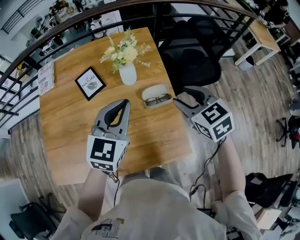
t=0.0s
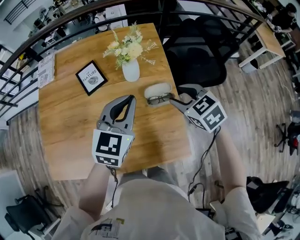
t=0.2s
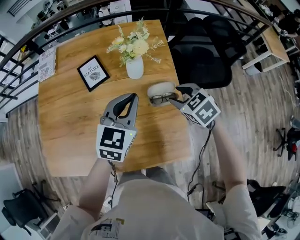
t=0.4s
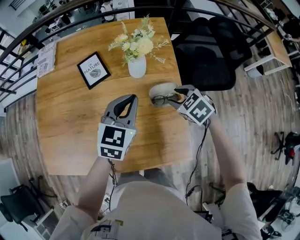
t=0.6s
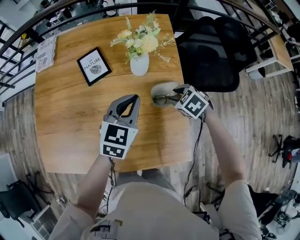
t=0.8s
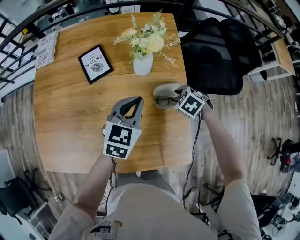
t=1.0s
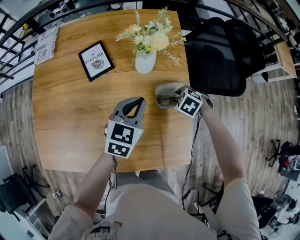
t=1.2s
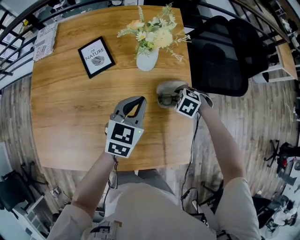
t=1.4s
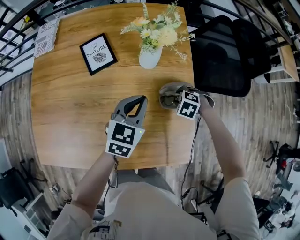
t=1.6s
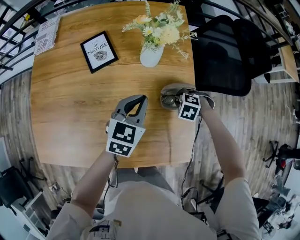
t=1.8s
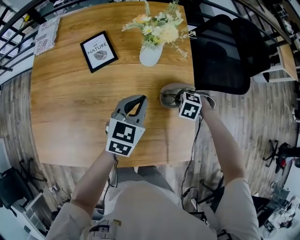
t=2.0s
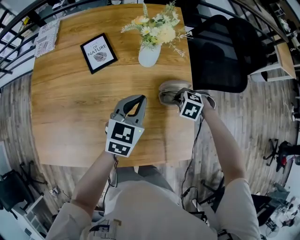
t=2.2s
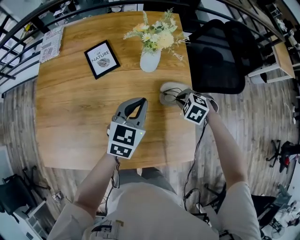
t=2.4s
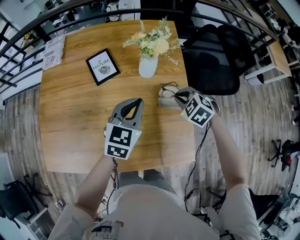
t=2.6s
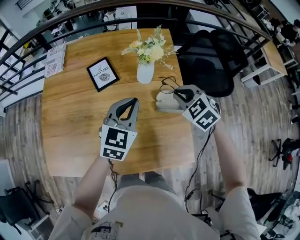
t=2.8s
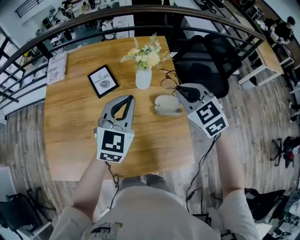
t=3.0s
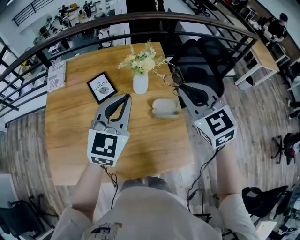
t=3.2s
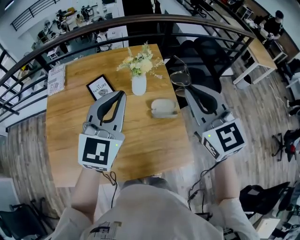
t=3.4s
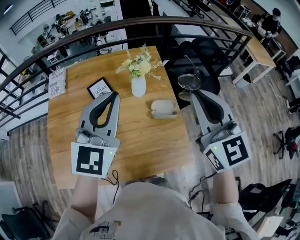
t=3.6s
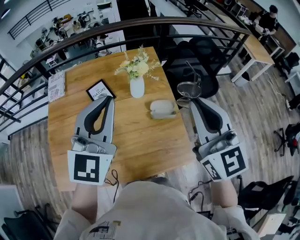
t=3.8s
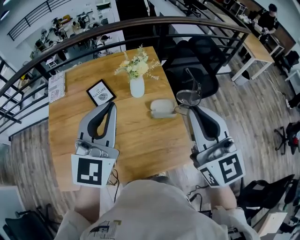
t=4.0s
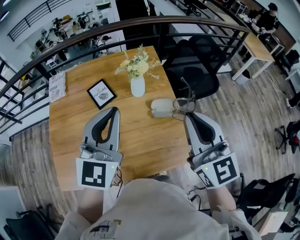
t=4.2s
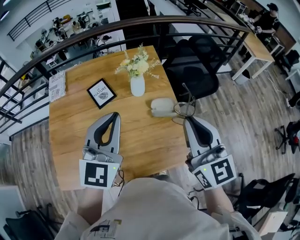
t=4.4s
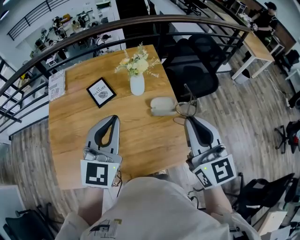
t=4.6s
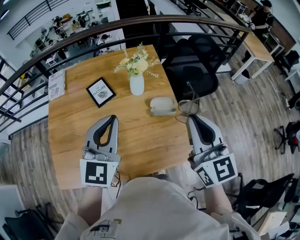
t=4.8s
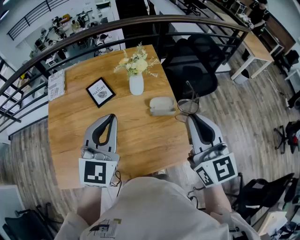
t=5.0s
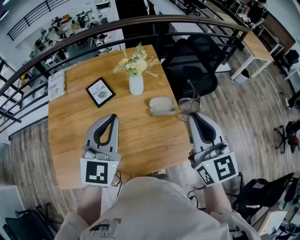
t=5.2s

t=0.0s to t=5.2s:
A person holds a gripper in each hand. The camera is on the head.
t=0.0s to t=1.8s: The right gripper is displaced downward by some 35 cm, tilts its fingers some 40 degrees downward, and closes. Meanwhile the left gripper goes approximately 20 cm downward.
t=1.8s to t=3.4s: The right gripper is displaced upward by roughly 50 cm, and tips its fingers upward by roughly 70 degrees. The left gripper travels upward by approximately 30 cm, and swivels about 30 degrees.
t=3.4s to t=5.2s: The grippers both shift backward by some 10 cm. The right gripper swivels some 20 degrees.

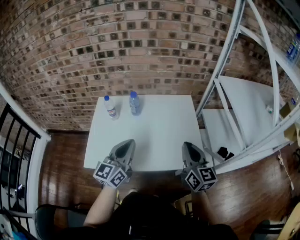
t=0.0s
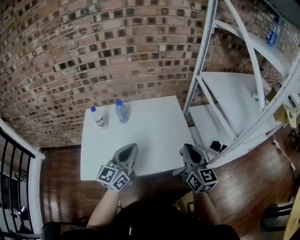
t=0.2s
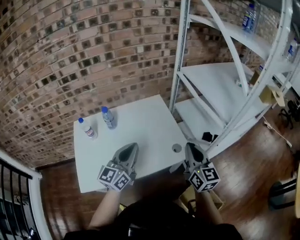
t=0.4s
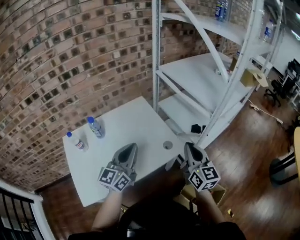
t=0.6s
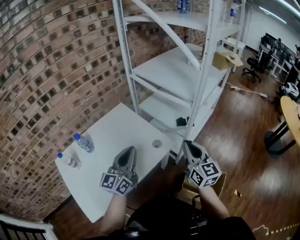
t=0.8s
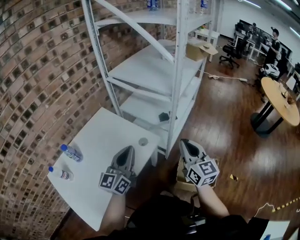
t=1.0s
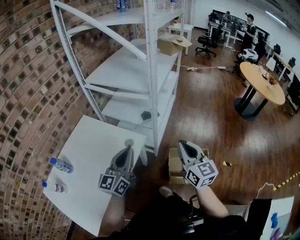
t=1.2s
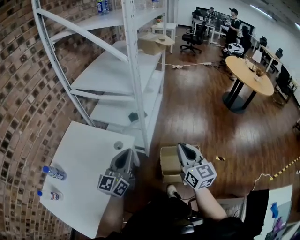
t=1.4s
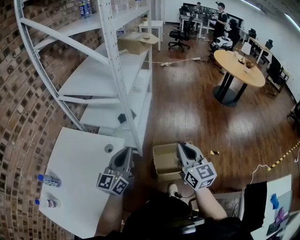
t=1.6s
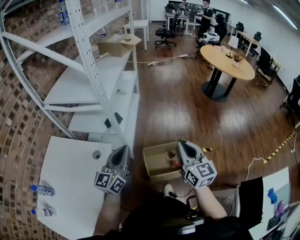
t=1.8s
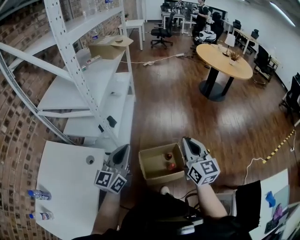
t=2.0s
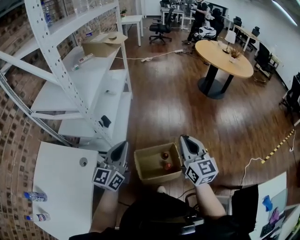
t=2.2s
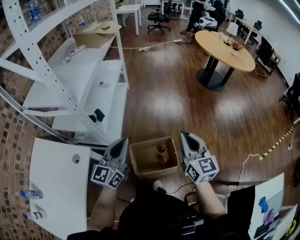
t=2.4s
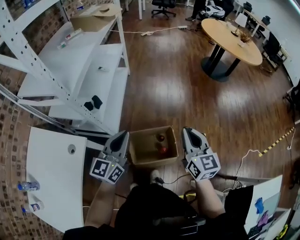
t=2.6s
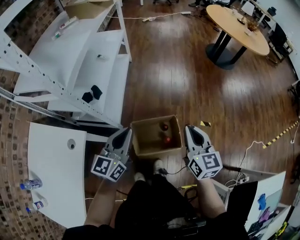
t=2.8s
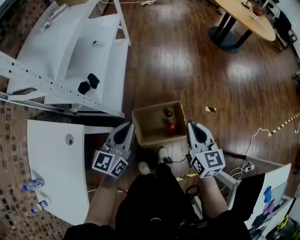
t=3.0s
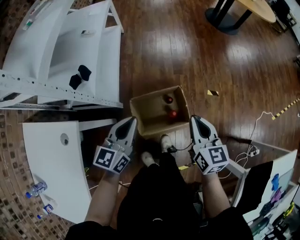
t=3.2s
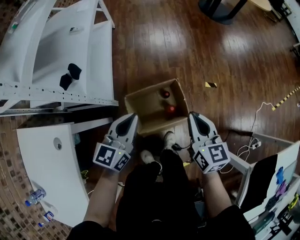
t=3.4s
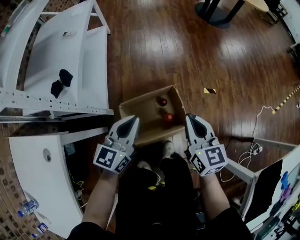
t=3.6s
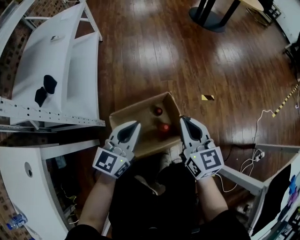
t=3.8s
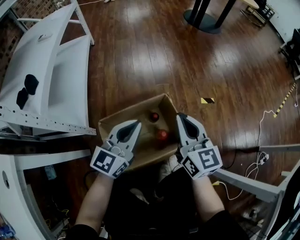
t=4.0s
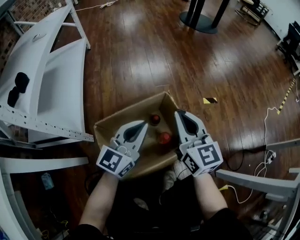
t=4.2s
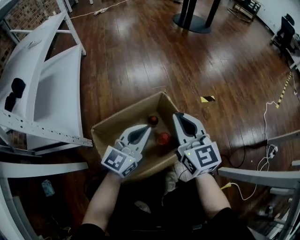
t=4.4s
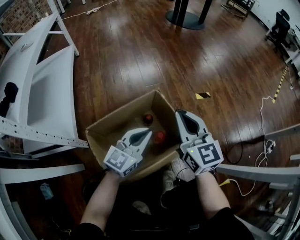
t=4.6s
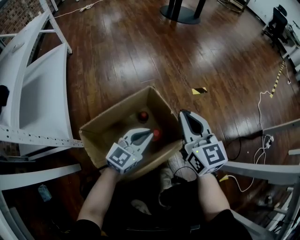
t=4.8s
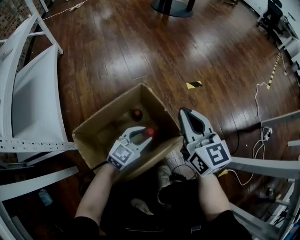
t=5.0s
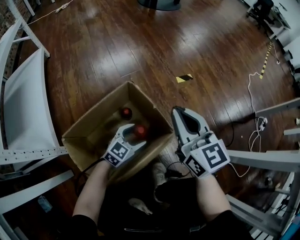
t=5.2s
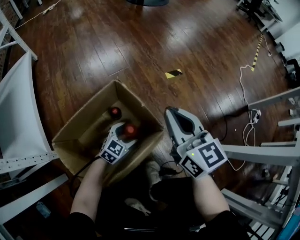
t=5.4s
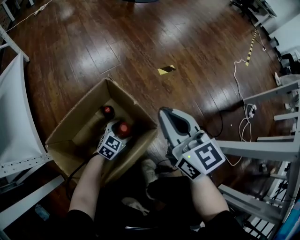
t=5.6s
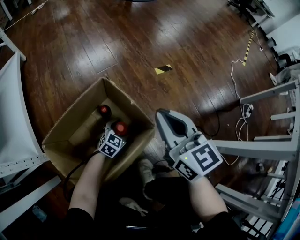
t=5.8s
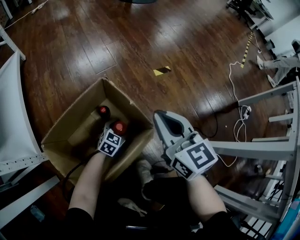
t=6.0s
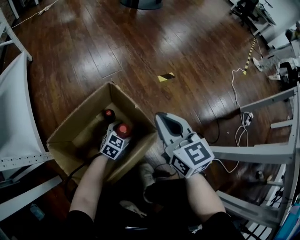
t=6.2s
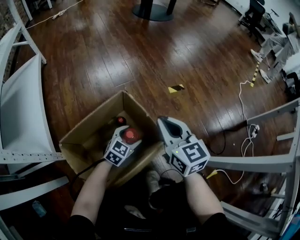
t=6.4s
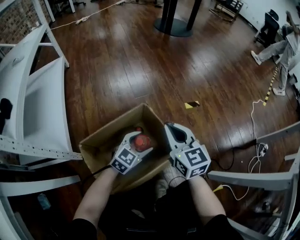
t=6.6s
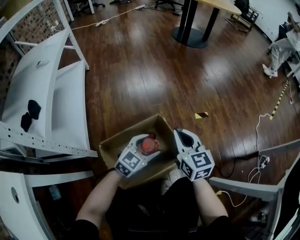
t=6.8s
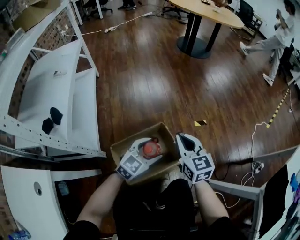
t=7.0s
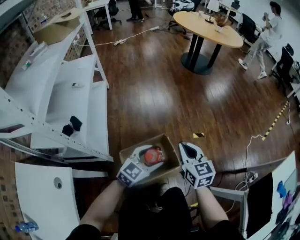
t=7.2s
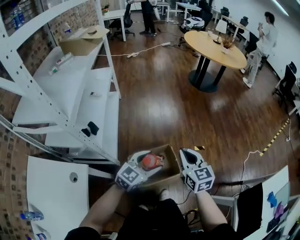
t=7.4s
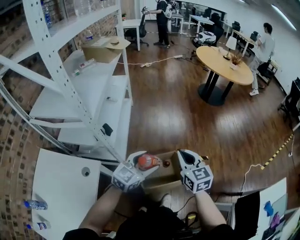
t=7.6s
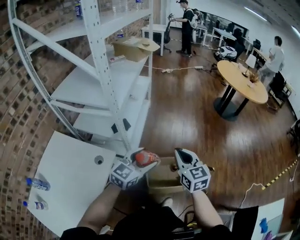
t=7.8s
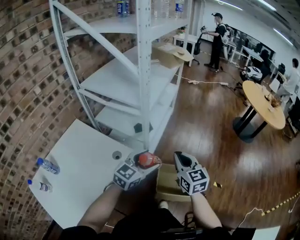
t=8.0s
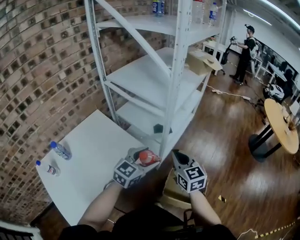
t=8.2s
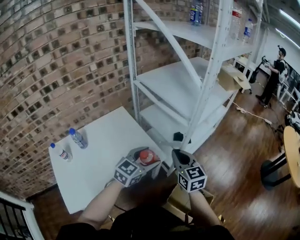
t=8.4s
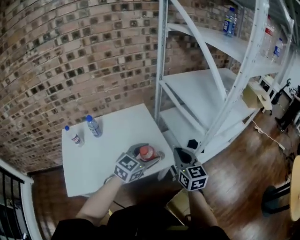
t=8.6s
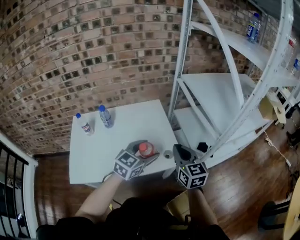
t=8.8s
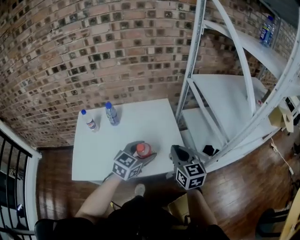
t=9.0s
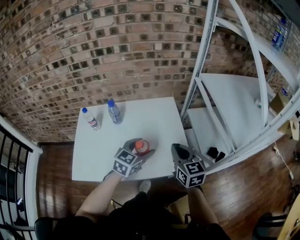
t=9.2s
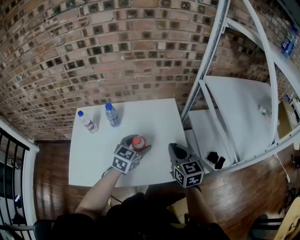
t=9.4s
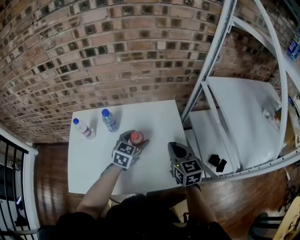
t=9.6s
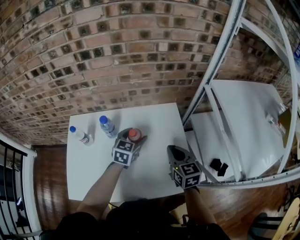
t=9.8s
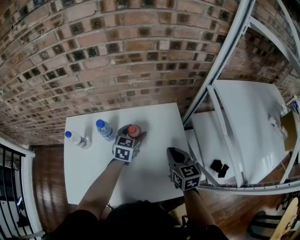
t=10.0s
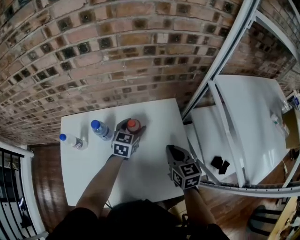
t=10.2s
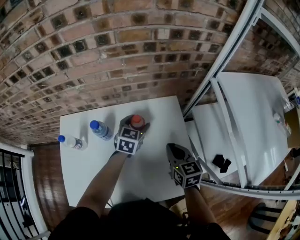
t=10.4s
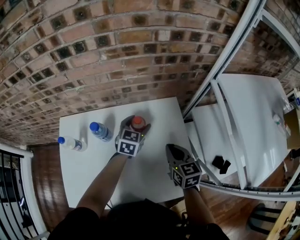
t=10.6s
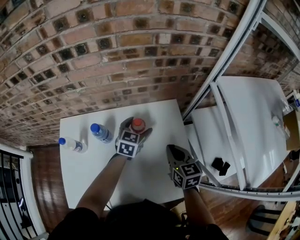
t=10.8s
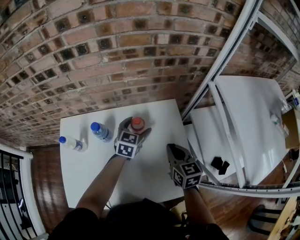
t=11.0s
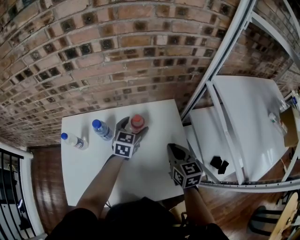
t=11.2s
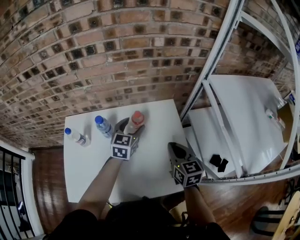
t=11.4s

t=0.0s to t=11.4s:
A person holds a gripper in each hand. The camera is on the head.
t=0.0s to t=1.4s: The left gripper shifts by roughly 30 cm, and swivels roughly 60 degrees; the right gripper ends up approximately 35 cm from where it was, and changes its angle by about 60 degrees.
t=1.4s to t=2.8s: The grippers both shift to the right, forward and downward by approximately 35 cm. The left gripper swivels approximately 20 degrees.
t=2.8s to t=4.2s: Both grippers move downward, some 50 cm. The left gripper turns by about 30 degrees.
t=4.2s to t=5.6s: The left gripper heads downward and to the right, covering about 35 cm, angles its fingers downward, by some 30 degrees, and opens its fingers. The right gripper heads to the right, covering some 15 cm.
t=5.6s to t=7.2s: The right gripper moves upward, some 30 cm. The left gripper heads upward, covering some 60 cm, and turns by roughly 20 degrees.
t=7.2s to t=8.6s: The two grippers travel together, some 50 cm. The right gripper swivels about 70 degrees. Meanwhile the left gripper turns by approximately 80 degrees.
t=8.6s to t=10.0s: The right gripper moves approximately 30 cm, and changes its angle by some 20 degrees. Meanwhile the left gripper shifts by about 40 cm, and changes its angle by about 40 degrees.
t=10.0s to t=11.4s: The grippers move only a little.

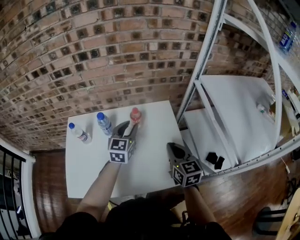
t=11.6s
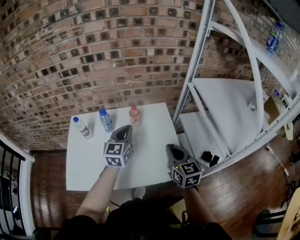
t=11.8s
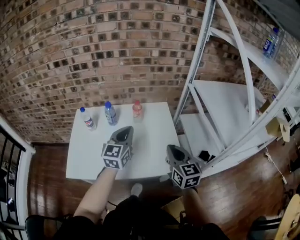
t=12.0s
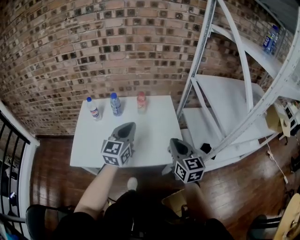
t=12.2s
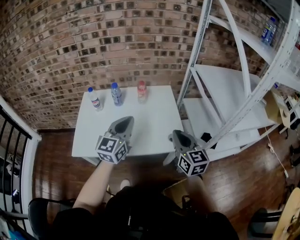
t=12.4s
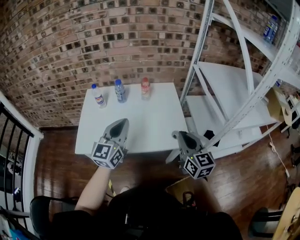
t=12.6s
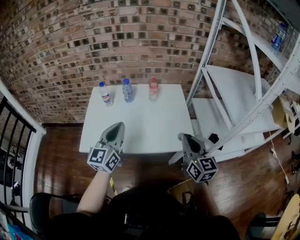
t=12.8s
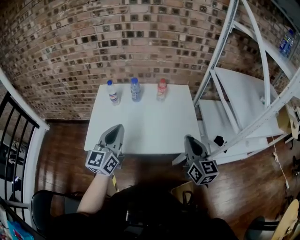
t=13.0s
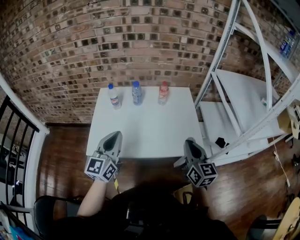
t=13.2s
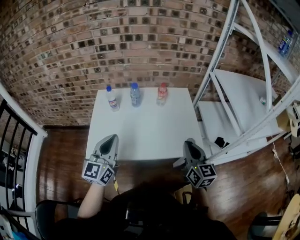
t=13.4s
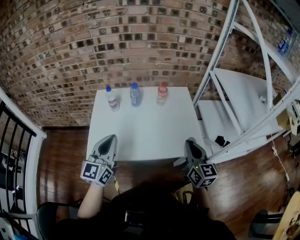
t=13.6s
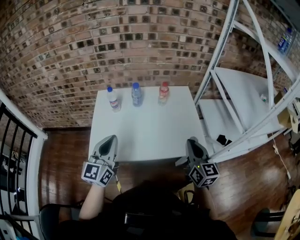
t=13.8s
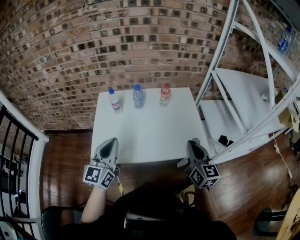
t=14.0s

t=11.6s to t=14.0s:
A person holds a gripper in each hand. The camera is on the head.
t=11.6s to t=12.8s: The two grippers go approximately 25 cm backward. The left gripper rotates about 20 degrees, and closes its fingers.
t=12.8s to t=14.0s: The right gripper goes about 5 cm to the left. Meanwhile the left gripper travels to the left by roughly 10 cm.

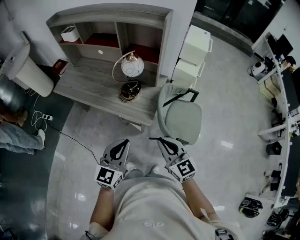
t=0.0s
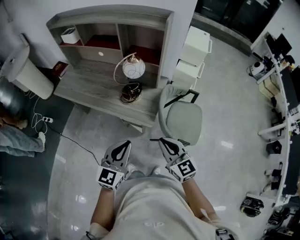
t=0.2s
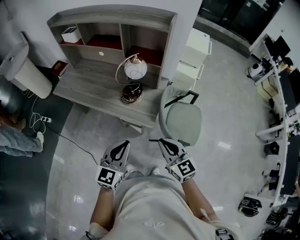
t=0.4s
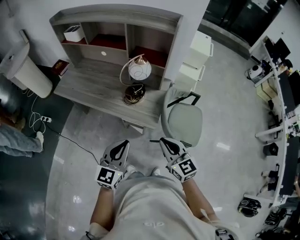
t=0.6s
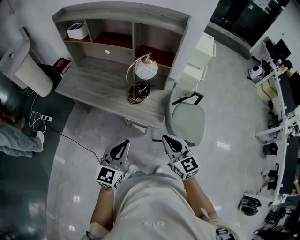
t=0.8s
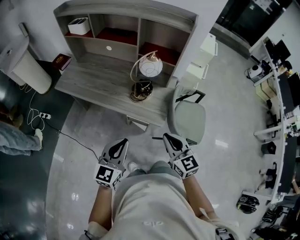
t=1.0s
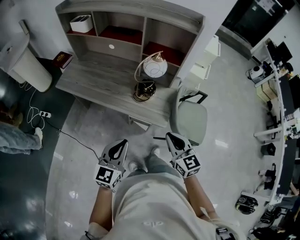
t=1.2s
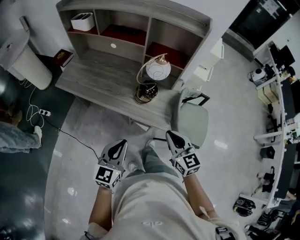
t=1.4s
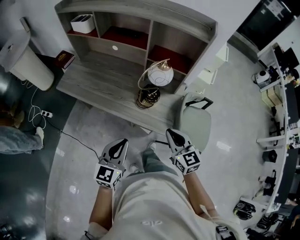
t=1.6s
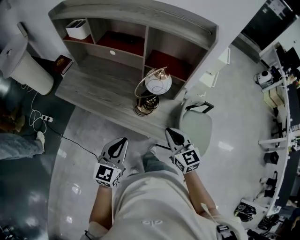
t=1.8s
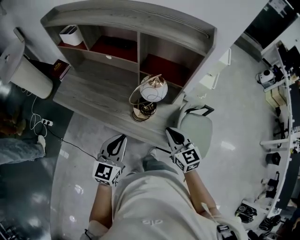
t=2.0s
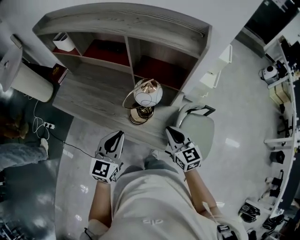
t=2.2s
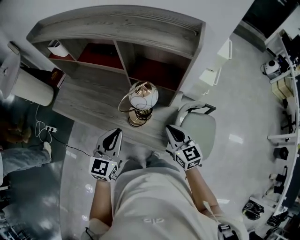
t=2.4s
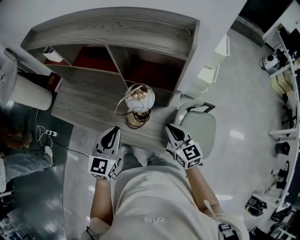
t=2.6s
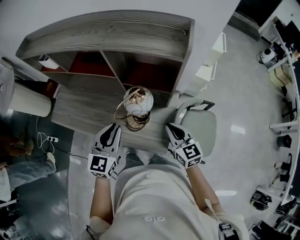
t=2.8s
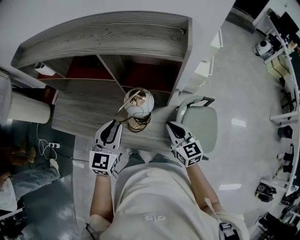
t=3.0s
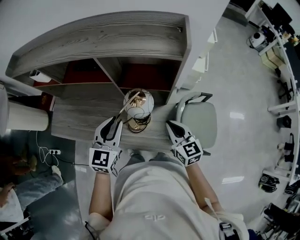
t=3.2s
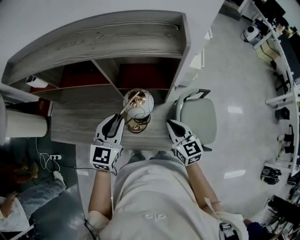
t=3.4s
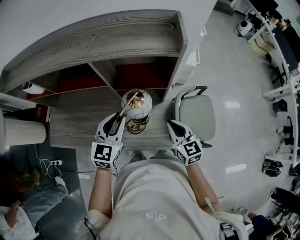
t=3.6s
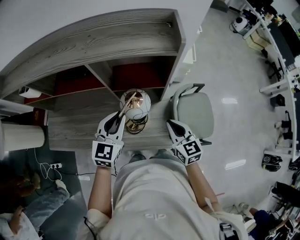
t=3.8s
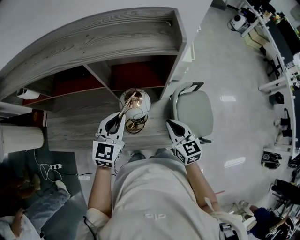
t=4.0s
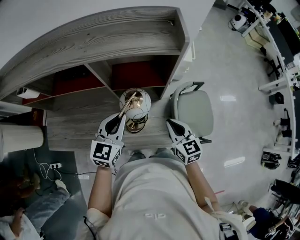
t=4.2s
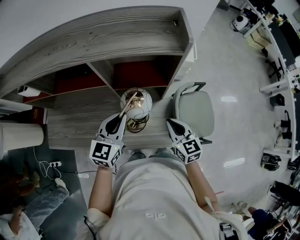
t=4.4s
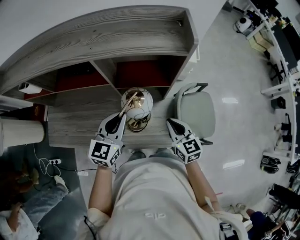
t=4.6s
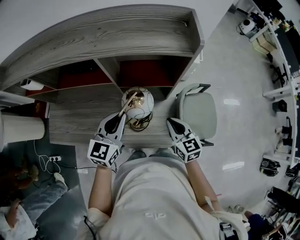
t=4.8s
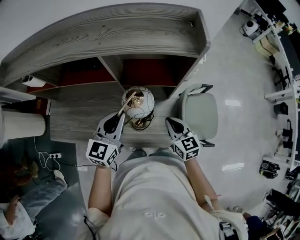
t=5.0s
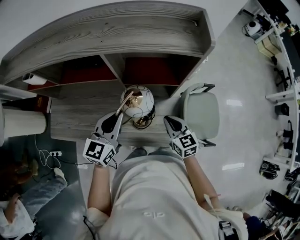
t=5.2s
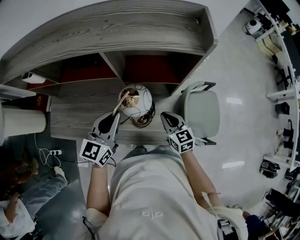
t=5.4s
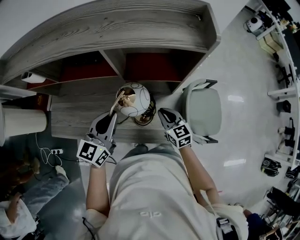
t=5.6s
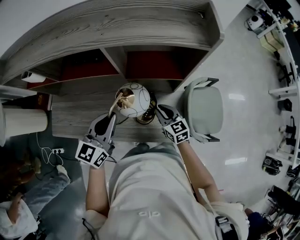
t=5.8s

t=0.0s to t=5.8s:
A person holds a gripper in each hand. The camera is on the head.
t=0.0s to t=1.4s: The right gripper heads to the left and forward, covering roughly 15 cm. Meanwhile the left gripper heads to the left, covering approximately 15 cm.
t=1.4s to t=2.8s: The left gripper is displaced forward by some 30 cm; the right gripper goes some 25 cm forward and to the right.
t=2.8s to t=4.4s: The left gripper goes approximately 10 cm forward, and rotates about 20 degrees.
t=4.4s to t=5.8s: The left gripper goes about 10 cm to the left, while the right gripper heads downward and to the left, covering some 15 cm.
